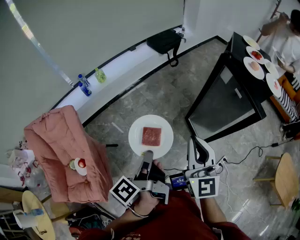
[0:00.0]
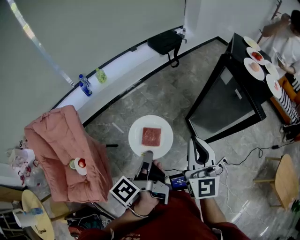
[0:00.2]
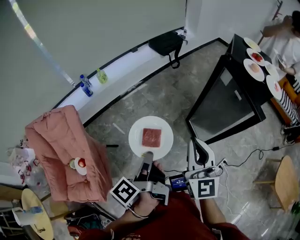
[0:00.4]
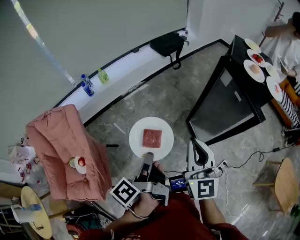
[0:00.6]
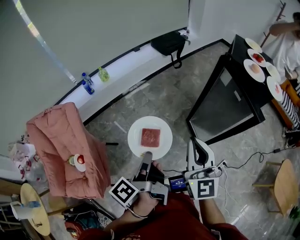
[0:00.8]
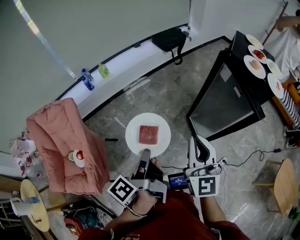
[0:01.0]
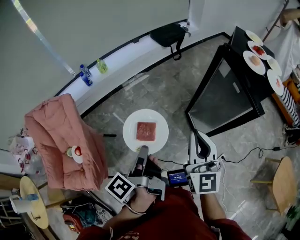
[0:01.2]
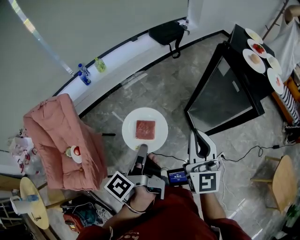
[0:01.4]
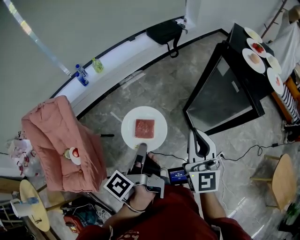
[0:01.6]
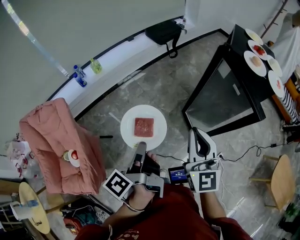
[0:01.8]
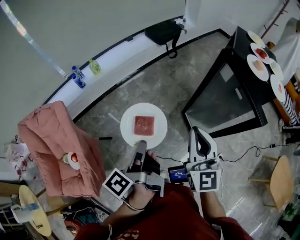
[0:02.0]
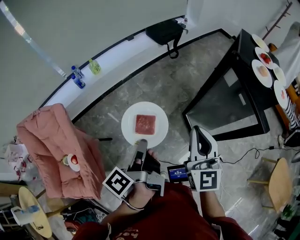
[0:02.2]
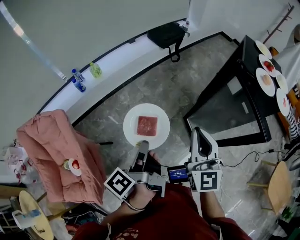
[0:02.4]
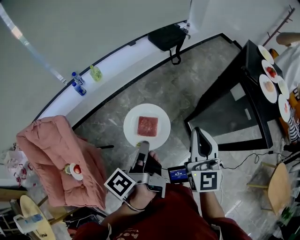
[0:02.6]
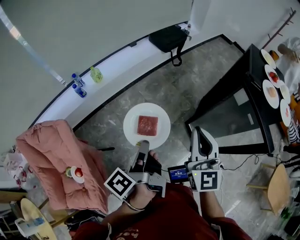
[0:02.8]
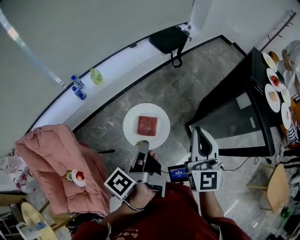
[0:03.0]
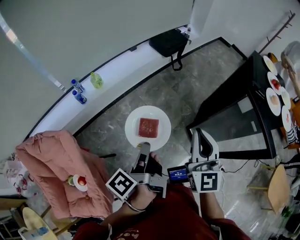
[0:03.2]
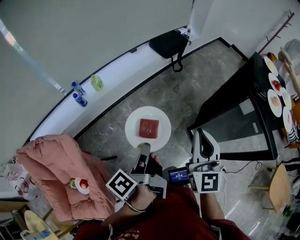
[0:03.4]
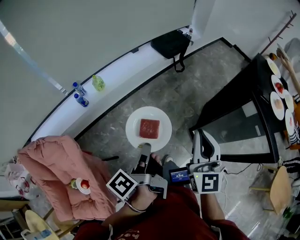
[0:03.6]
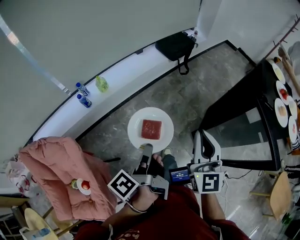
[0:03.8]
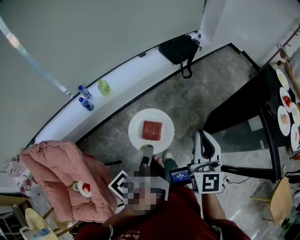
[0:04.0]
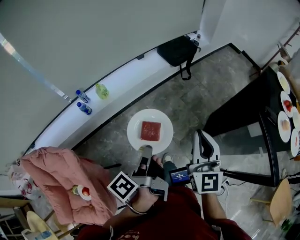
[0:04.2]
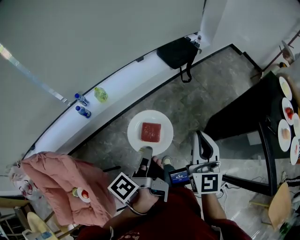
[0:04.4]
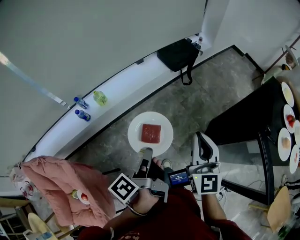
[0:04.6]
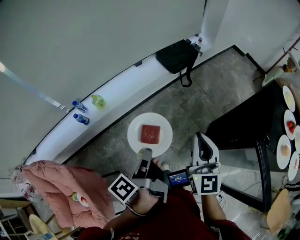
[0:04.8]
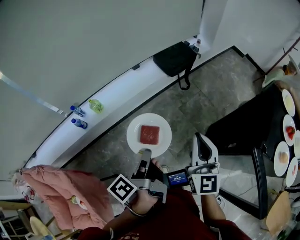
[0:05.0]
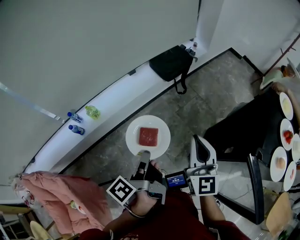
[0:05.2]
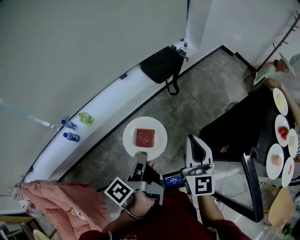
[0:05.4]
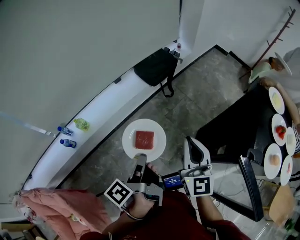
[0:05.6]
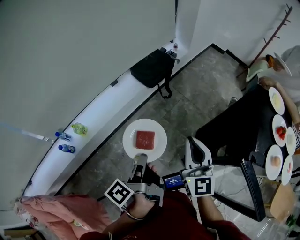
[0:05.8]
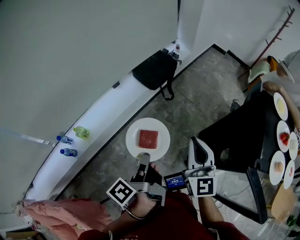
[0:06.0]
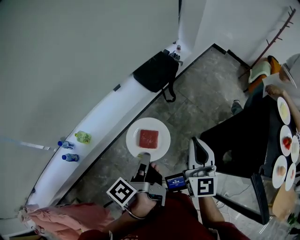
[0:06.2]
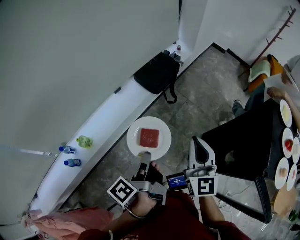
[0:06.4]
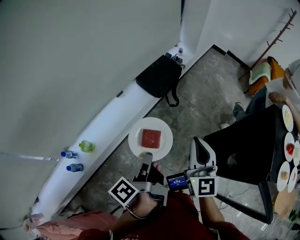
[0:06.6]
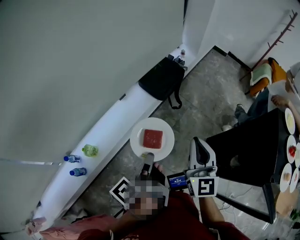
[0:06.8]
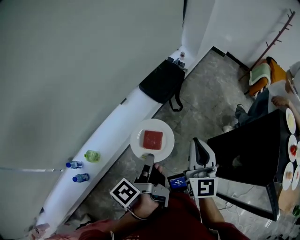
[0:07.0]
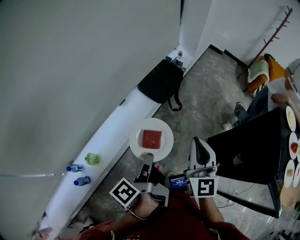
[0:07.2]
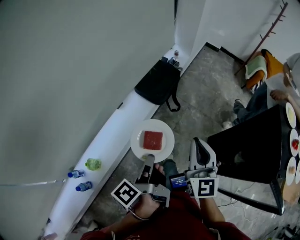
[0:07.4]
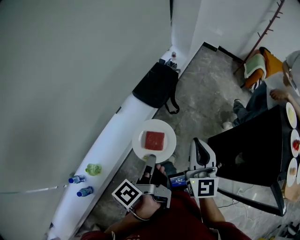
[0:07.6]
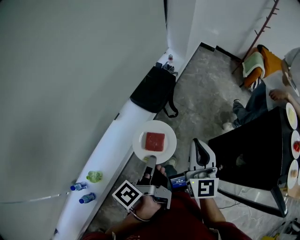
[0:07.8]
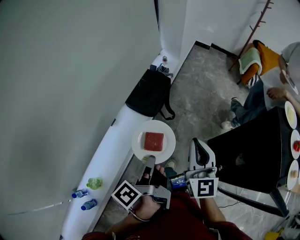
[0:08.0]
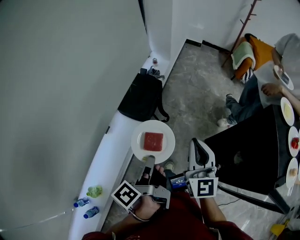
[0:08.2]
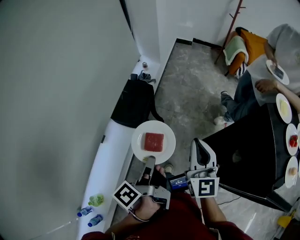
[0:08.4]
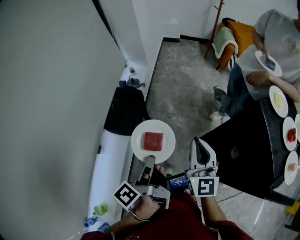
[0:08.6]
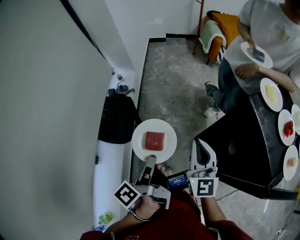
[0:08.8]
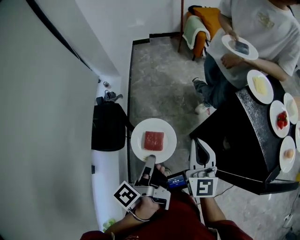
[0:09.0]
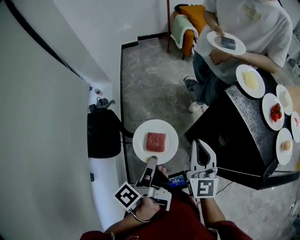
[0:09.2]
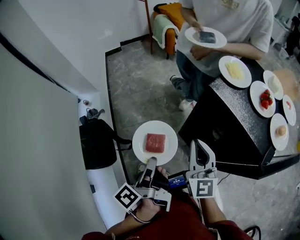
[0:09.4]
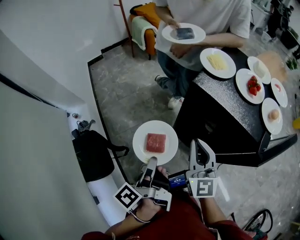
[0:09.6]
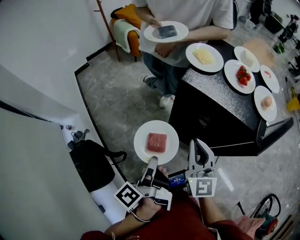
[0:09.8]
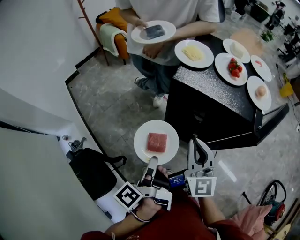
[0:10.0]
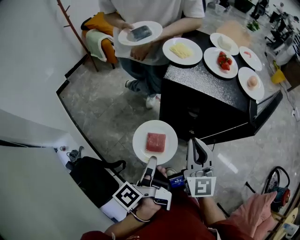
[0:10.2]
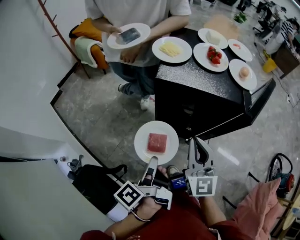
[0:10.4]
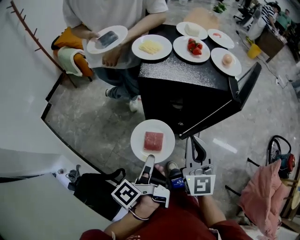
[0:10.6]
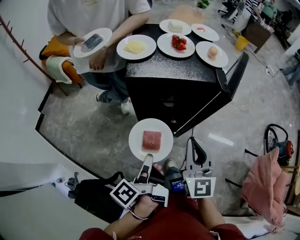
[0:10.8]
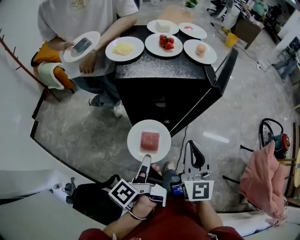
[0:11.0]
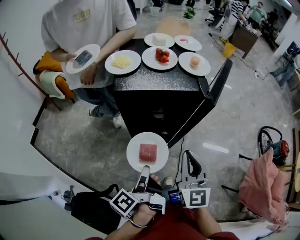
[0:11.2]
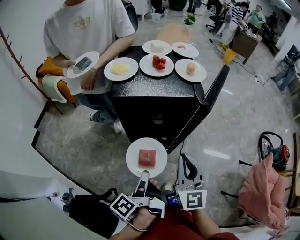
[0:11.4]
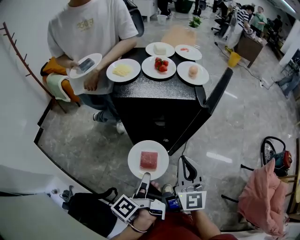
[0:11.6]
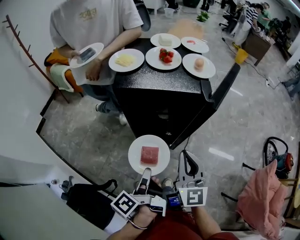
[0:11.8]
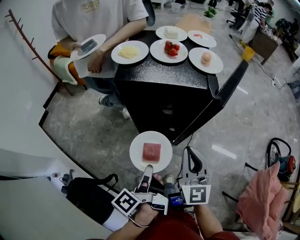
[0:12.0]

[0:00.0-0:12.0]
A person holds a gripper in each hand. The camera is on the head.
0:00.0 to 0:01.6: The right gripper moves to the right, about 5 cm.
0:01.6 to 0:03.0: The two grippers go approximately 20 cm forward and to the left.
0:03.0 to 0:04.4: Both grippers travel together forward, some 15 cm.
0:04.4 to 0:06.0: The two grippers go about 20 cm forward and to the right.
0:06.0 to 0:07.6: The two grippers go approximately 20 cm forward and to the left.
0:07.6 to 0:09.0: The left gripper changes place by approximately 35 cm, and rotates some 30 degrees; the right gripper changes place by about 30 cm, and swivels about 30 degrees.
0:09.0 to 0:10.4: The left gripper shifts by some 10 cm, and rotates approximately 50 degrees. Meanwhile the right gripper ends up some 10 cm from where it was, and swivels about 50 degrees.
0:10.4 to 0:12.0: Both grippers move to the right, roughly 10 cm.

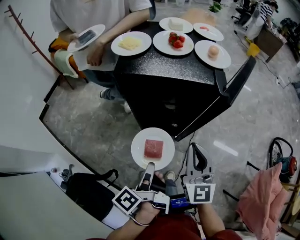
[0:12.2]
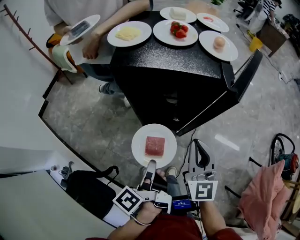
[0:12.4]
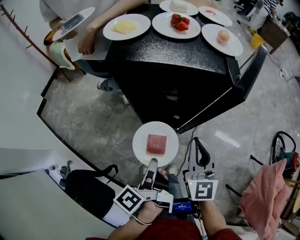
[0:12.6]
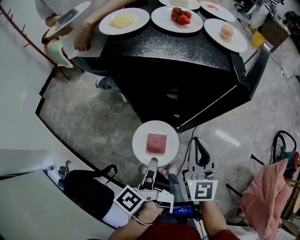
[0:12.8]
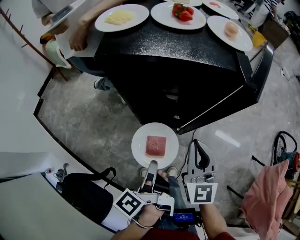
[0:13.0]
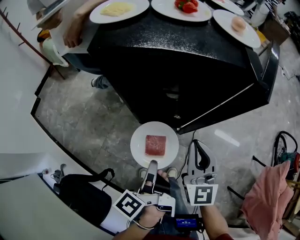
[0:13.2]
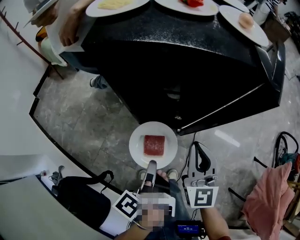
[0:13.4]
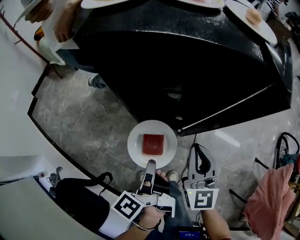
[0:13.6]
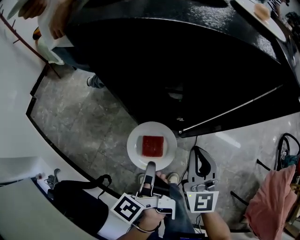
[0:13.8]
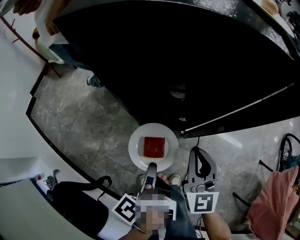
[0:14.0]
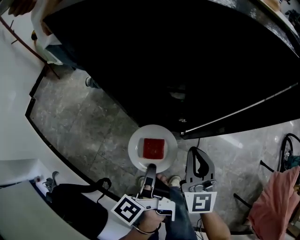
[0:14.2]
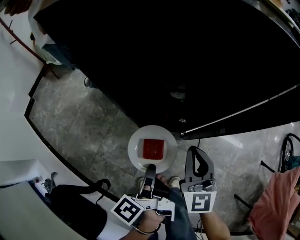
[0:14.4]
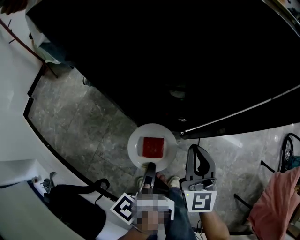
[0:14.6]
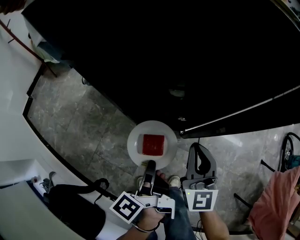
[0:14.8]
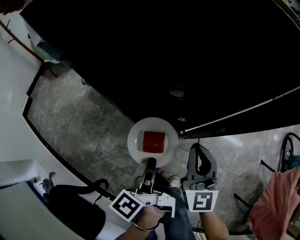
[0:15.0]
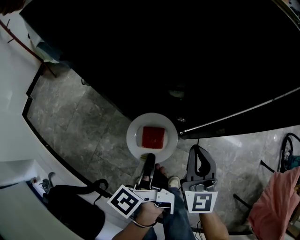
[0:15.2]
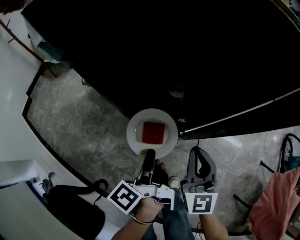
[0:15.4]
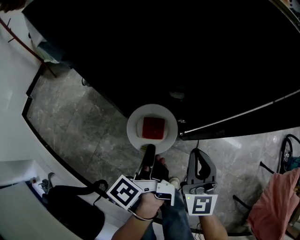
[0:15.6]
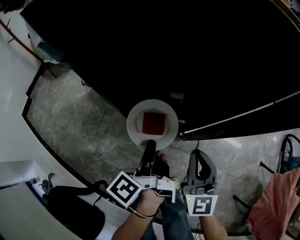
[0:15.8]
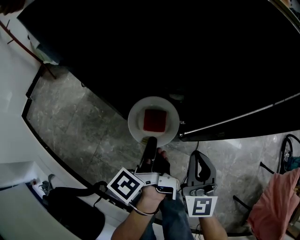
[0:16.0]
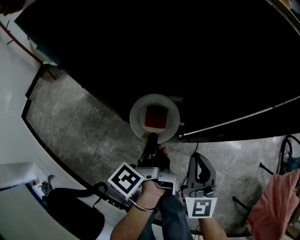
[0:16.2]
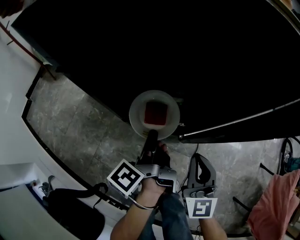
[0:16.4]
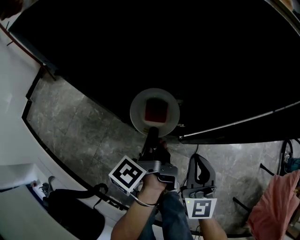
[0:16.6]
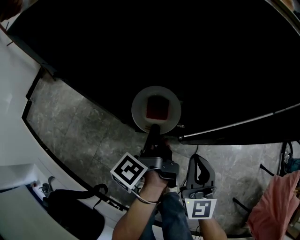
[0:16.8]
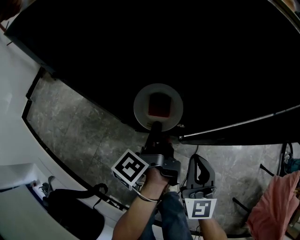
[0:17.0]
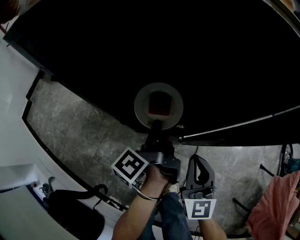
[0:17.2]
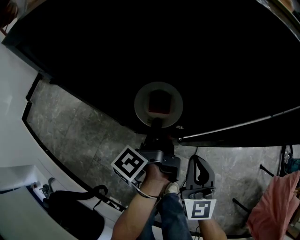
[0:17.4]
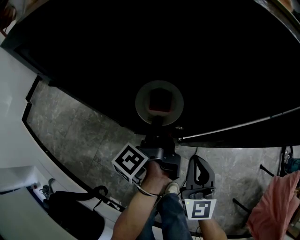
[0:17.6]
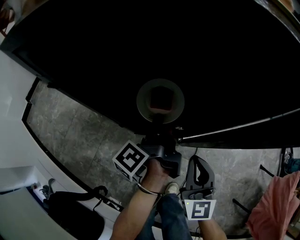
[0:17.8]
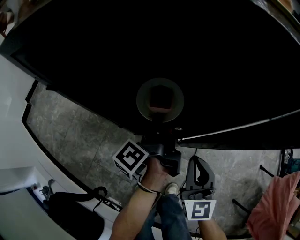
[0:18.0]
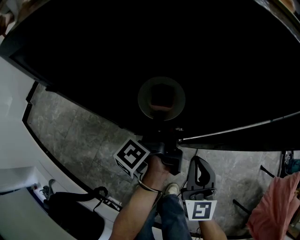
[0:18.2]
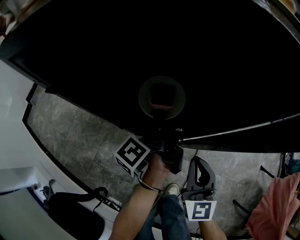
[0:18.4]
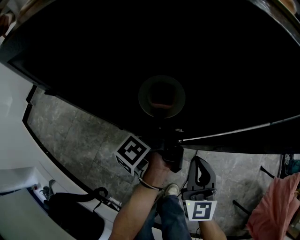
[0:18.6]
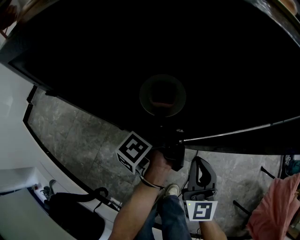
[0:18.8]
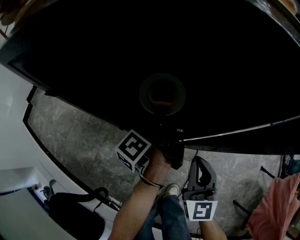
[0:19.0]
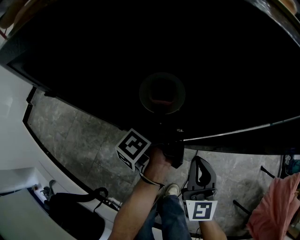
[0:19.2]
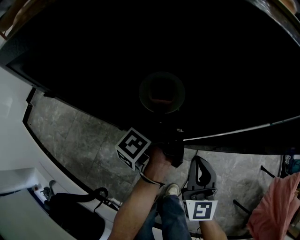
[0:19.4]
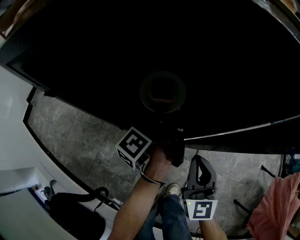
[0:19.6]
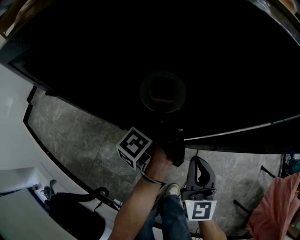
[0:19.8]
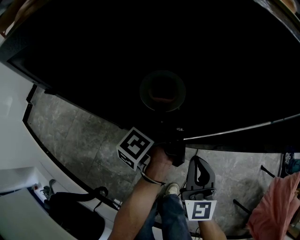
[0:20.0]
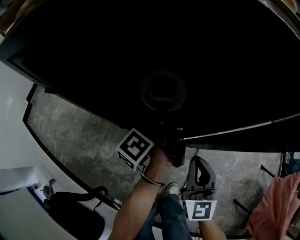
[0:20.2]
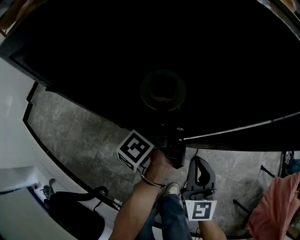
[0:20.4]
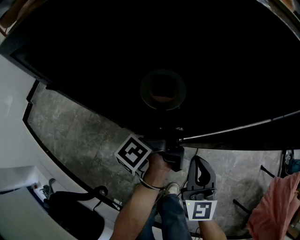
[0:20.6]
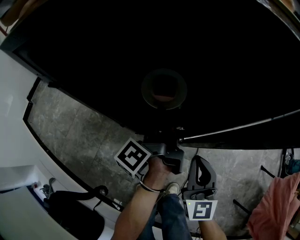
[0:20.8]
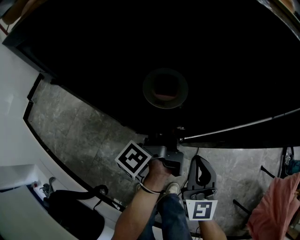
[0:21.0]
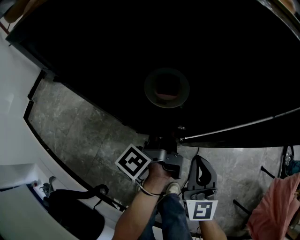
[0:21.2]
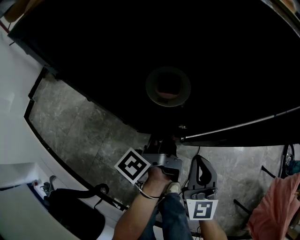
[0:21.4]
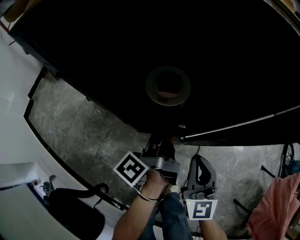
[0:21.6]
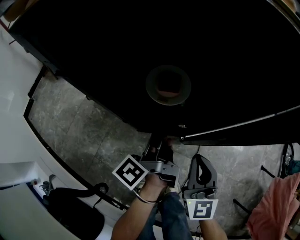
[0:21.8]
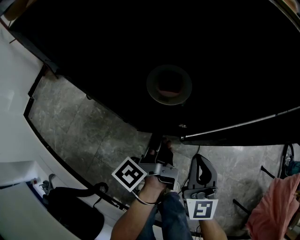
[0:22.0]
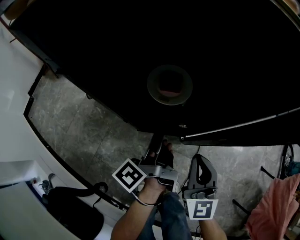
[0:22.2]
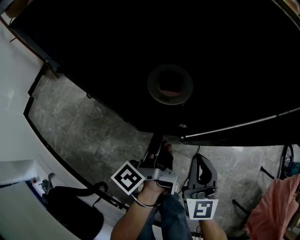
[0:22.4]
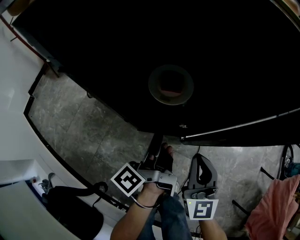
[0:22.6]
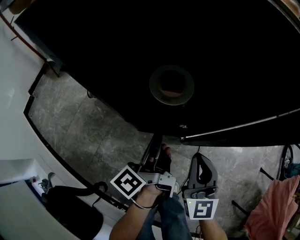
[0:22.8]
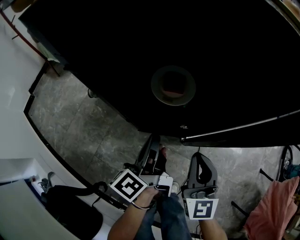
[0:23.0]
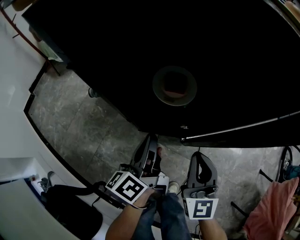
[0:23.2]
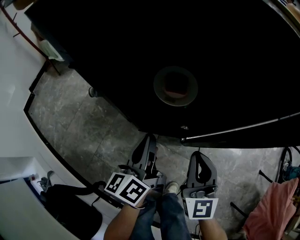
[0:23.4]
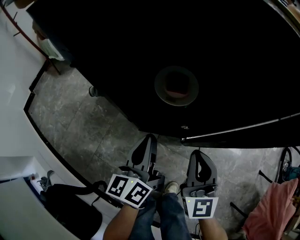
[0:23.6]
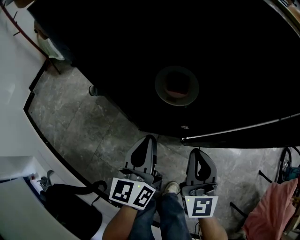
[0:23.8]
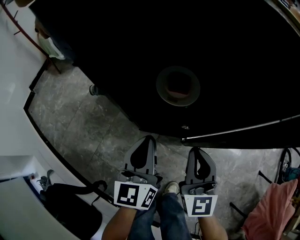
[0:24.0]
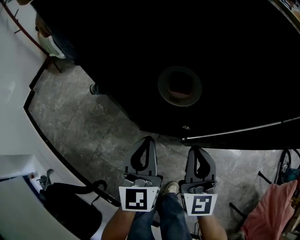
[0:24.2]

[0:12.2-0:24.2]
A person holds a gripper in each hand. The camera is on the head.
0:12.2 to 0:13.8: The left gripper shifts some 15 cm downward and forward. The right gripper travels downward by some 20 cm.
0:13.8 to 0:15.2: The grippers both shift downward by some 5 cm.
0:15.2 to 0:16.6: The left gripper shifts some 10 cm forward.
0:16.6 to 0:18.2: The left gripper shifts approximately 5 cm forward.
0:18.2 to 0:19.8: The grippers move only a little.
0:19.8 to 0:21.2: The left gripper heads backward, covering about 5 cm, and opens up.
0:21.2 to 0:22.6: The left gripper goes approximately 5 cm backward, and closes up.
0:22.6 to 0:24.2: The left gripper ends up approximately 5 cm from where it was, and rotates around the line of its fingers by roughly 80 degrees, clockwise from behind.
